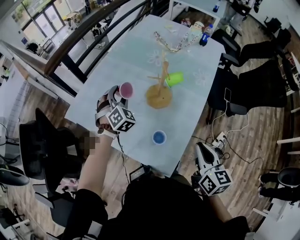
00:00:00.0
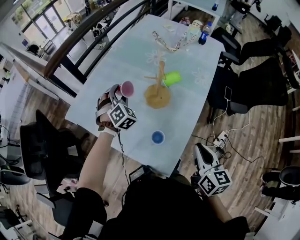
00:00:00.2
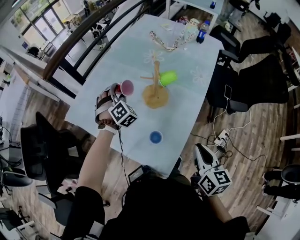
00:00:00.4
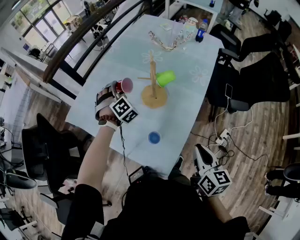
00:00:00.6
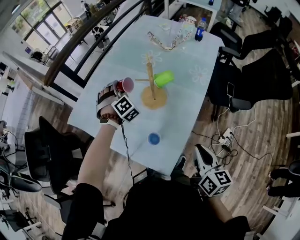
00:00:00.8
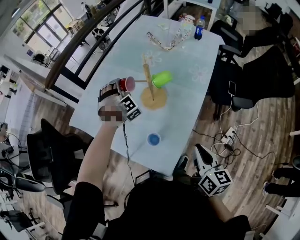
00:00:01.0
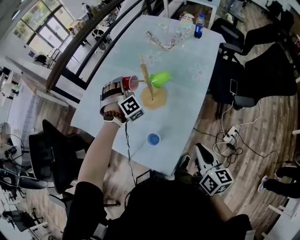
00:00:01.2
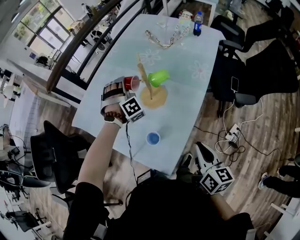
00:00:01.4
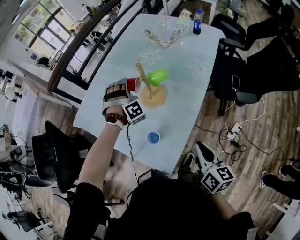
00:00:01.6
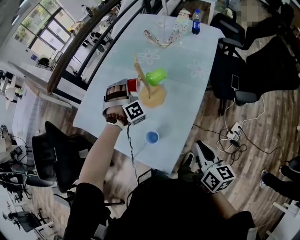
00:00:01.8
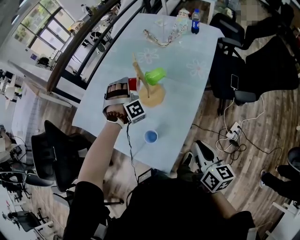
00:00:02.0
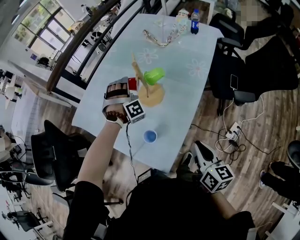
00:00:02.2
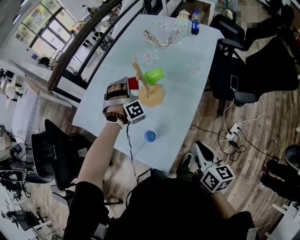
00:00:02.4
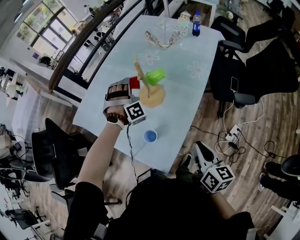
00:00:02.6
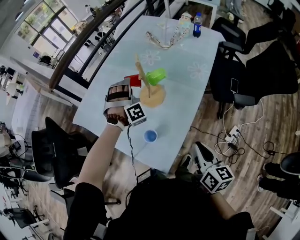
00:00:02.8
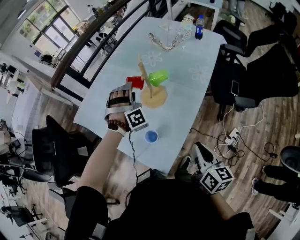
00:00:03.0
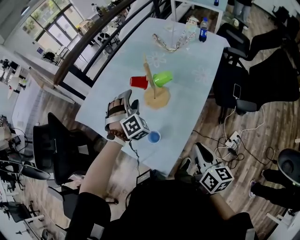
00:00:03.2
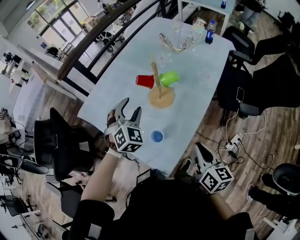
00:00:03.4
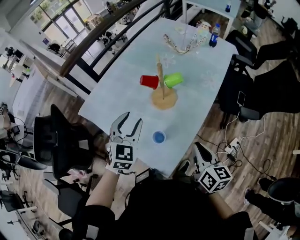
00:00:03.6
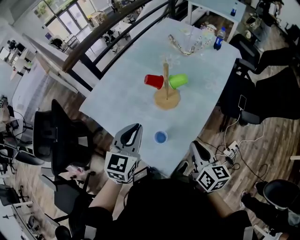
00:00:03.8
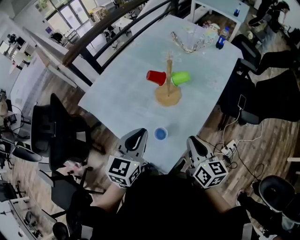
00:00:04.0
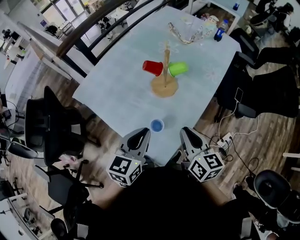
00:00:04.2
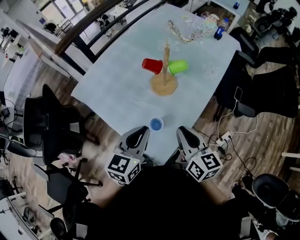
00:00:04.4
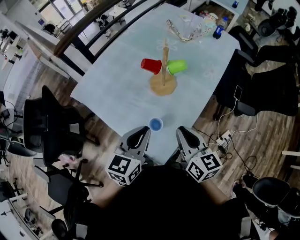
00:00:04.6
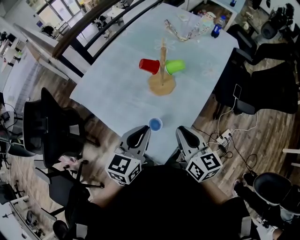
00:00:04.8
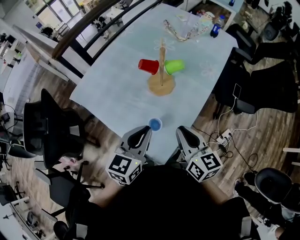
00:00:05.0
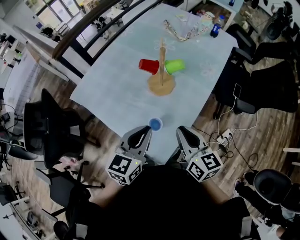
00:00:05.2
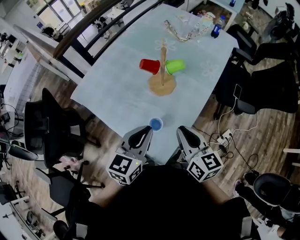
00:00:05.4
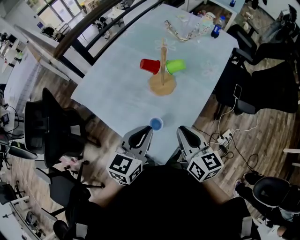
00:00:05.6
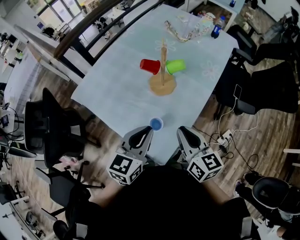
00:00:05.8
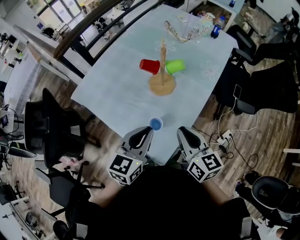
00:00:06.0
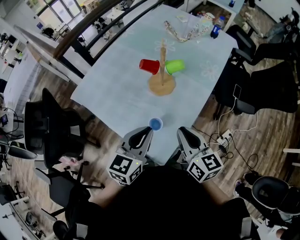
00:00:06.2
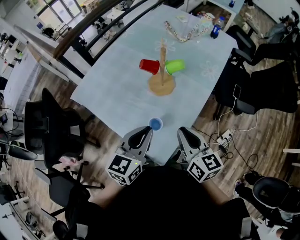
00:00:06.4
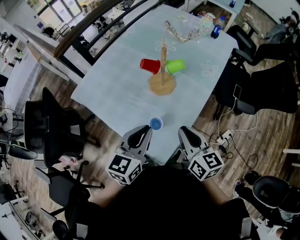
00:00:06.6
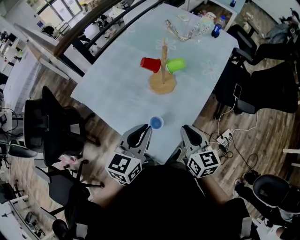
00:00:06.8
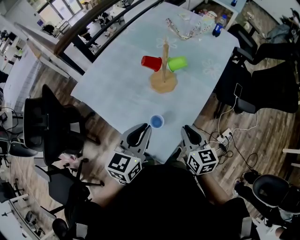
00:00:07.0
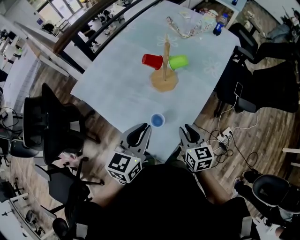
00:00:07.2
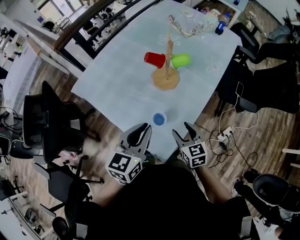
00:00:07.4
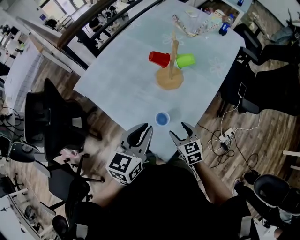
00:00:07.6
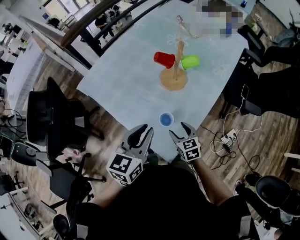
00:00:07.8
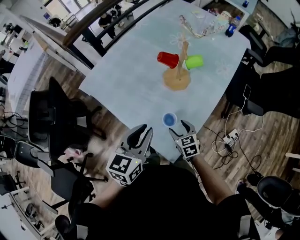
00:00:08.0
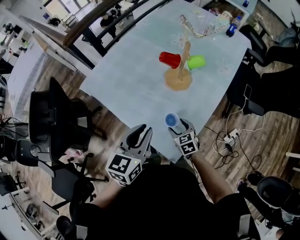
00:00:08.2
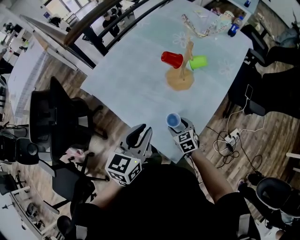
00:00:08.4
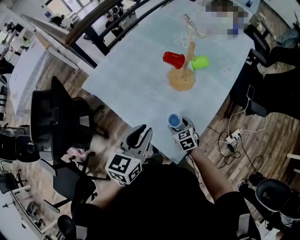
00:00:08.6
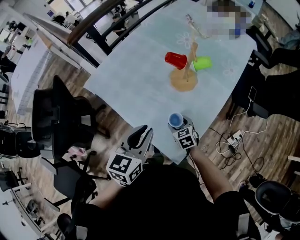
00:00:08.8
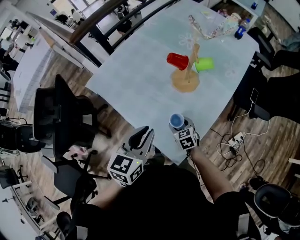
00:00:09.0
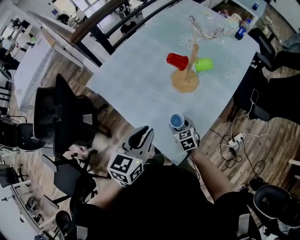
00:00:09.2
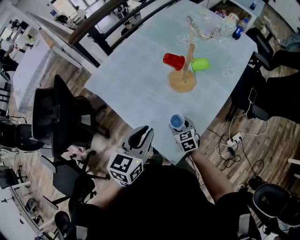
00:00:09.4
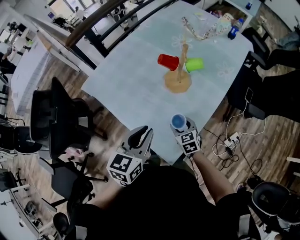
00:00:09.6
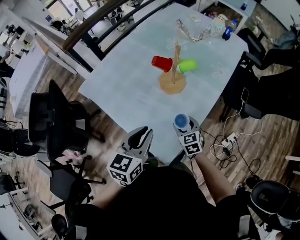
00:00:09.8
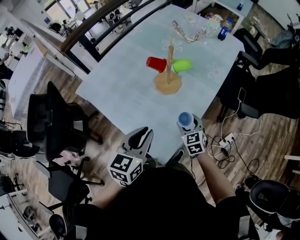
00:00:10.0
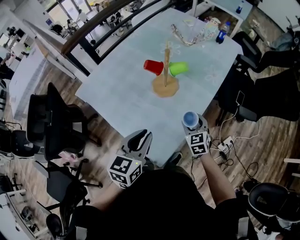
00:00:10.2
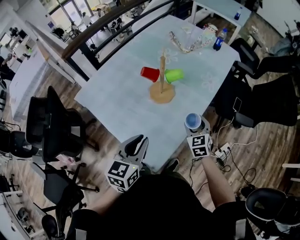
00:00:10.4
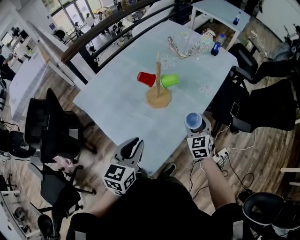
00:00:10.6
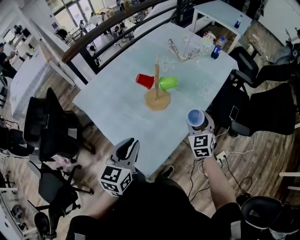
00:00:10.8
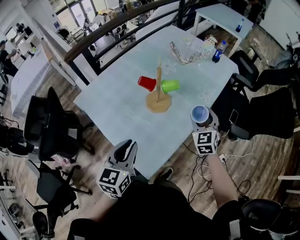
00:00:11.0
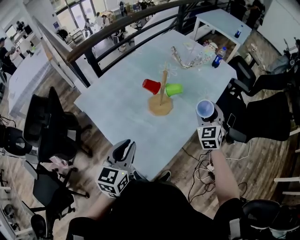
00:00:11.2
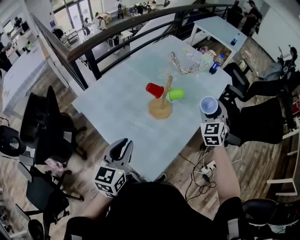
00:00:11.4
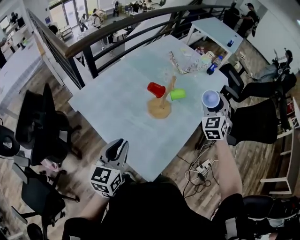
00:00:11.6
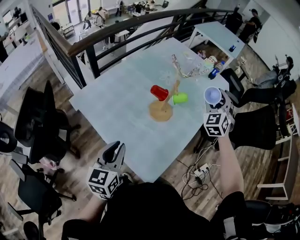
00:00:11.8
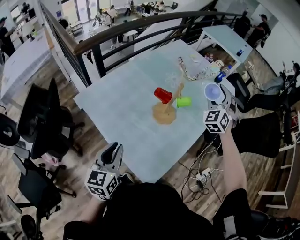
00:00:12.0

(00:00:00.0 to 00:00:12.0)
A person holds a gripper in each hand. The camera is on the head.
00:00:00.0 - 00:00:01.6: The left gripper is displaced to the right by roughly 15 cm, and swivels about 40 degrees. Meanwhile the right gripper travels to the right by about 10 cm.
00:00:01.6 - 00:00:03.0: The left gripper goes roughly 5 cm backward.
00:00:03.0 - 00:00:04.4: The left gripper travels backward by about 25 cm, rotates around the line of its fingers by some 90 degrees, counterclockwise from behind, and closes up. The right gripper travels to the left and forward by about 15 cm.
00:00:04.4 - 00:00:06.0: The grippers stay close to where they were, moving slightly.
00:00:06.0 - 00:00:07.6: The right gripper moves downward, roughly 20 cm, swivels roughly 30 degrees, and opens its fingers.
00:00:07.6 - 00:00:09.0: The right gripper moves downward, to the left and forward, about 15 cm, while the left gripper is displaced to the left by approximately 5 cm.
00:00:09.0 - 00:00:10.4: The left gripper goes roughly 10 cm to the right. Meanwhile the right gripper travels to the right and upward by roughly 25 cm, and turns by approximately 20 degrees.
00:00:10.4 - 00:00:12.0: The right gripper moves upward and forward, about 30 cm, and twists about 40 degrees counterclockwise, seen from behind, while the left gripper moves to the left, approximately 15 cm.

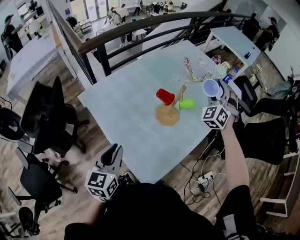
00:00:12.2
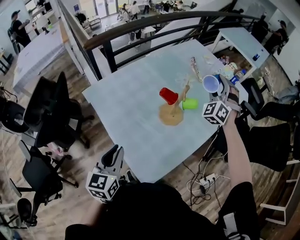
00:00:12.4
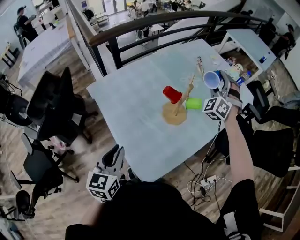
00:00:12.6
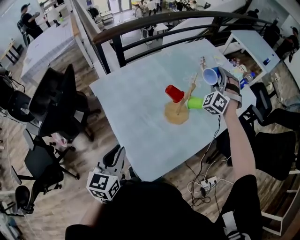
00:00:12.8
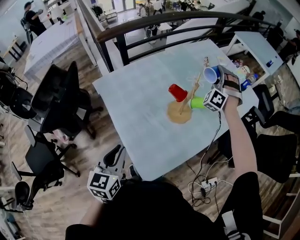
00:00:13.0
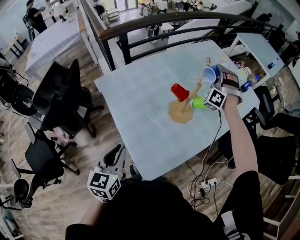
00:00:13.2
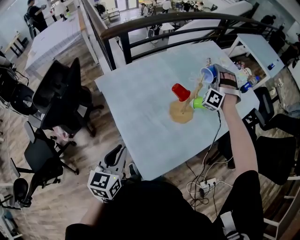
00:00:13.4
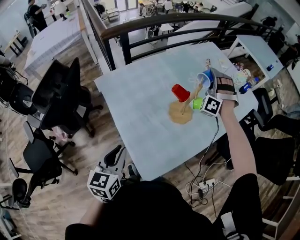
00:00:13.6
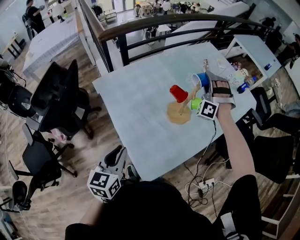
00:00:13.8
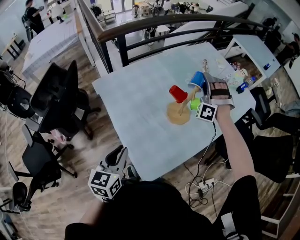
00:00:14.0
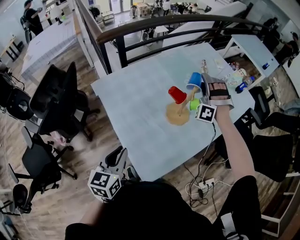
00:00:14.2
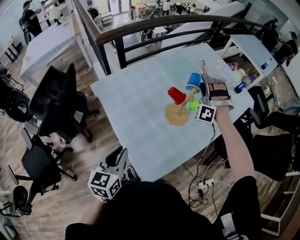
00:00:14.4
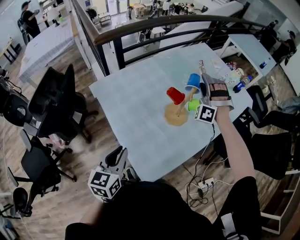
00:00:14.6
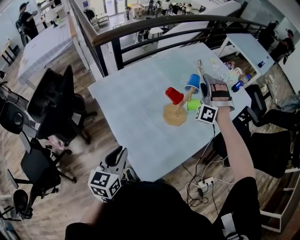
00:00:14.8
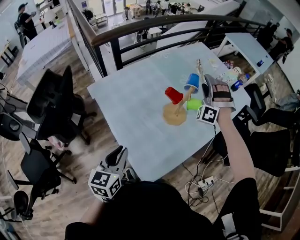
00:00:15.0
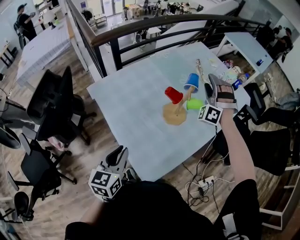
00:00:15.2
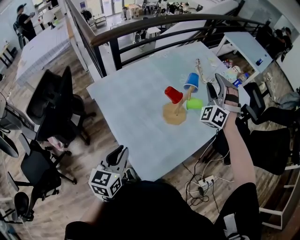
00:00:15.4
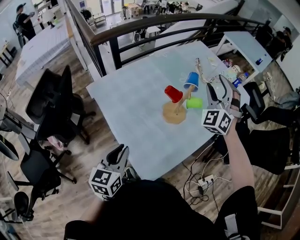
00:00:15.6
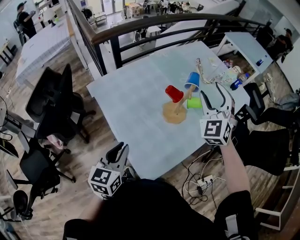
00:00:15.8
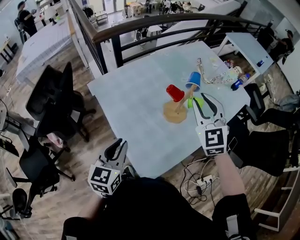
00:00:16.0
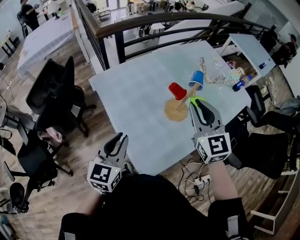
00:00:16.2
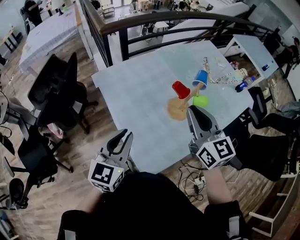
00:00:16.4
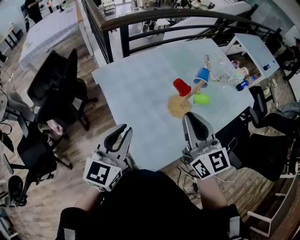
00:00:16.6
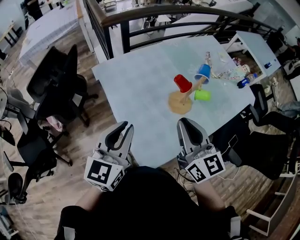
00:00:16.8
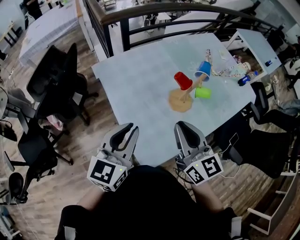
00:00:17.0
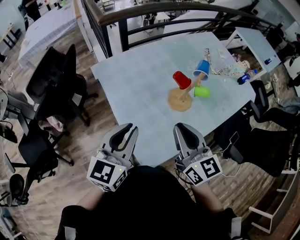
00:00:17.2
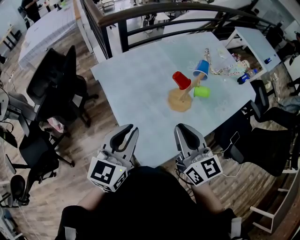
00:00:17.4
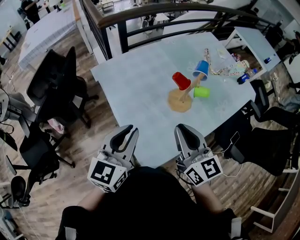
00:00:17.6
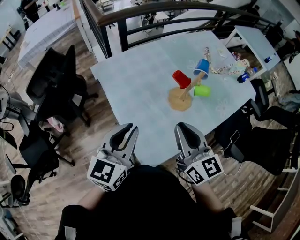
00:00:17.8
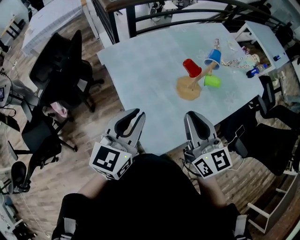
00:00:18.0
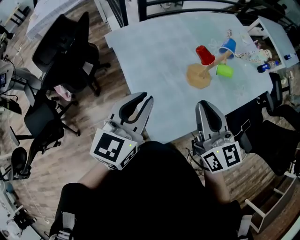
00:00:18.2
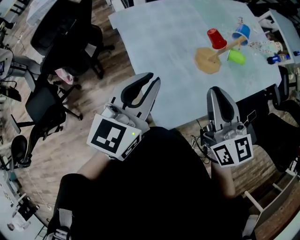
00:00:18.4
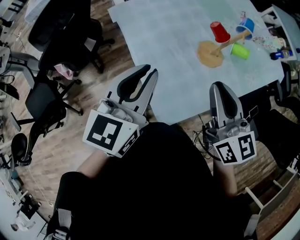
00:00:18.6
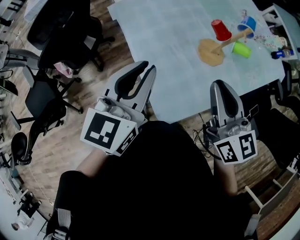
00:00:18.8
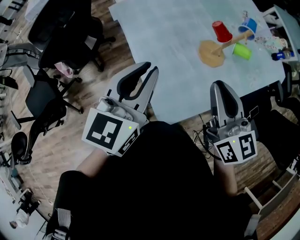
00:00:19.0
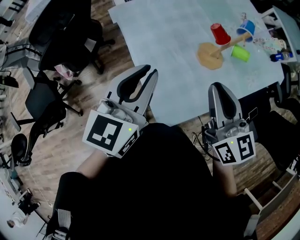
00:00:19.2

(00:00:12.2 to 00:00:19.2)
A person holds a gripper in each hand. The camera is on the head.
00:00:12.2 - 00:00:13.6: The right gripper shifts about 10 cm to the left, forward and downward, and rotates roughly 30 degrees, while the left gripper changes place by some 5 cm.
00:00:13.6 - 00:00:15.0: There are only small adjustments of the grippers.
00:00:15.0 - 00:00:16.4: The left gripper moves upward, some 5 cm. Meanwhile the right gripper heads backward and to the left, covering approximately 25 cm, rolls clockwise, seen from behind, by approximately 100 degrees, and closes up.
00:00:16.4 - 00:00:17.8: The right gripper travels backward by some 10 cm.
00:00:17.8 - 00:00:19.2: The grippers stay close to where they were, moving slightly.

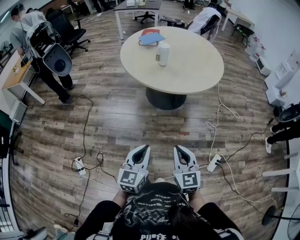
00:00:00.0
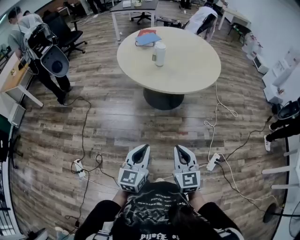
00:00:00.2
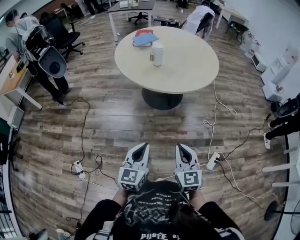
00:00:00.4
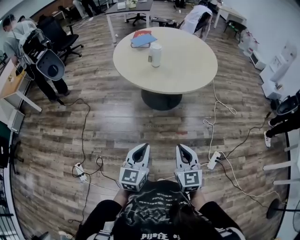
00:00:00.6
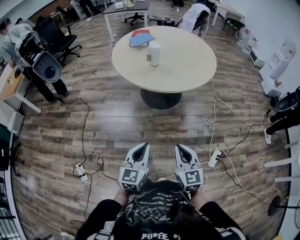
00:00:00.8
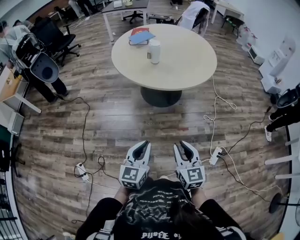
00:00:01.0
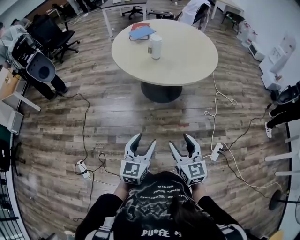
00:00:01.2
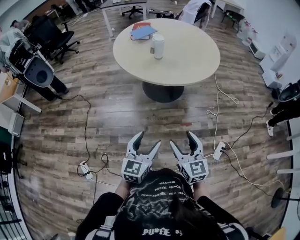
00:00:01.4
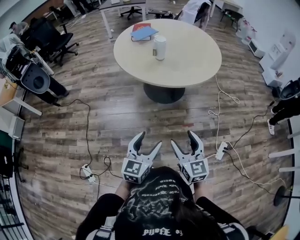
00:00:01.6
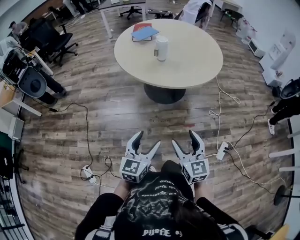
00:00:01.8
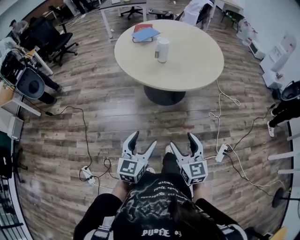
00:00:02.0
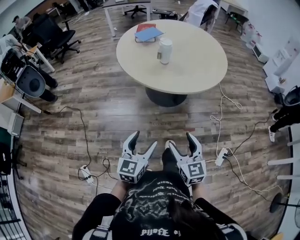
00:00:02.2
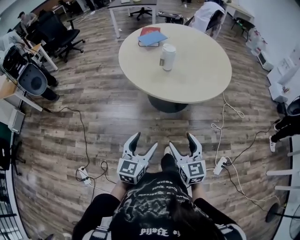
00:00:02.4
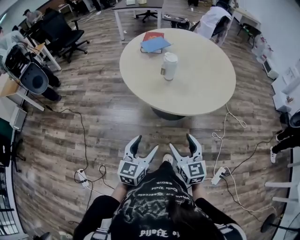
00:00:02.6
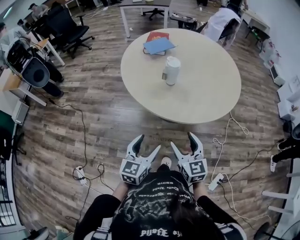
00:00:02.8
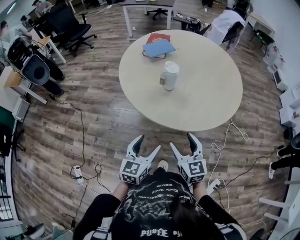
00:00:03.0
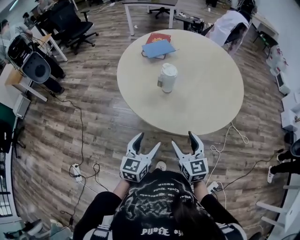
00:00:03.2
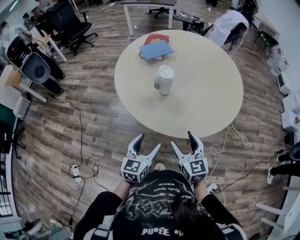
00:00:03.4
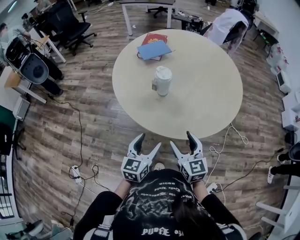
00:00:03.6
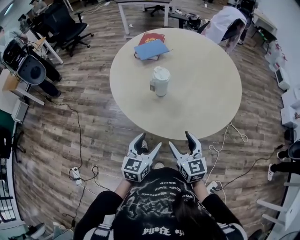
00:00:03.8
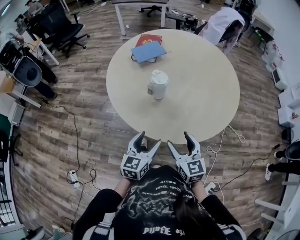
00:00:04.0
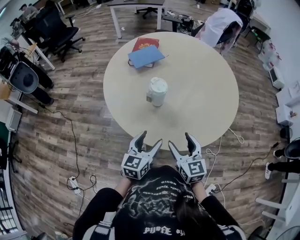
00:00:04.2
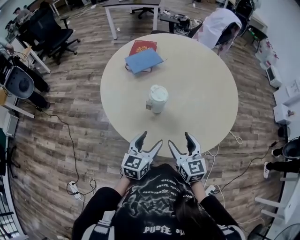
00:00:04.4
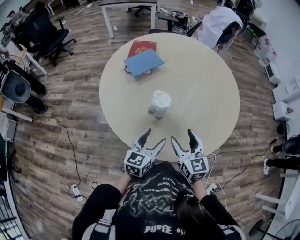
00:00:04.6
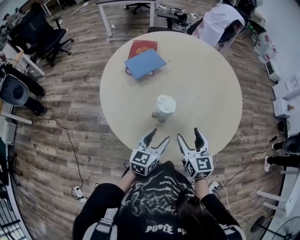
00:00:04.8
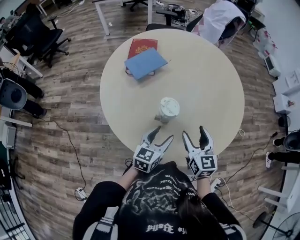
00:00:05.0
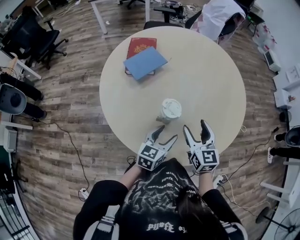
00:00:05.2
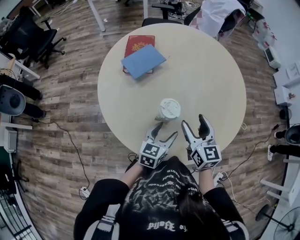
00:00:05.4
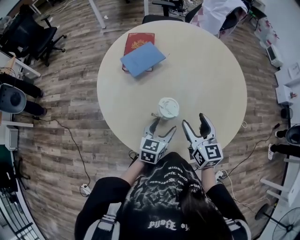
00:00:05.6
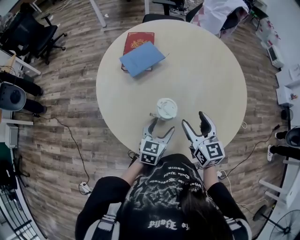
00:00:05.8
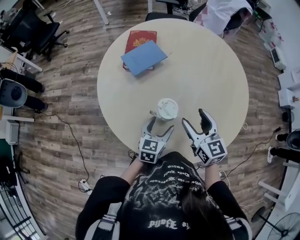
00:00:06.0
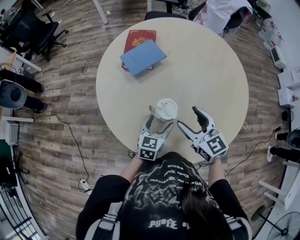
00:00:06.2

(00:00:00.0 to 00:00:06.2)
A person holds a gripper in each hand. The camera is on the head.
00:00:00.0 - 00:00:01.6: The left gripper ends up some 5 cm from where it was, and opens; the right gripper shifts some 5 cm to the left, and opens its fingers.
00:00:01.6 - 00:00:03.2: The grippers both shift forward by some 35 cm.
00:00:03.2 - 00:00:04.6: Both grippers move forward, some 20 cm.
00:00:04.6 - 00:00:06.2: The left gripper shifts some 15 cm forward and downward; the right gripper heads forward, covering approximately 15 cm.
